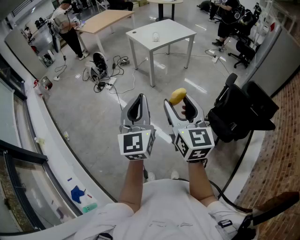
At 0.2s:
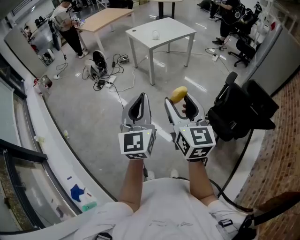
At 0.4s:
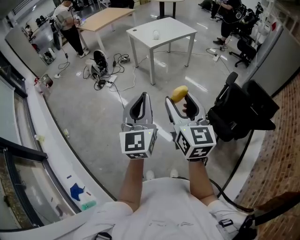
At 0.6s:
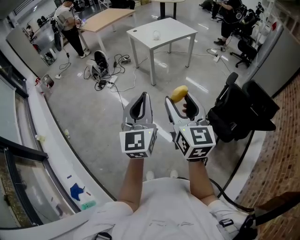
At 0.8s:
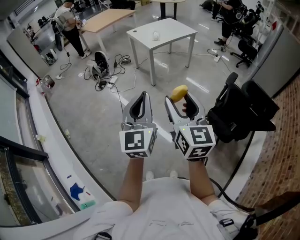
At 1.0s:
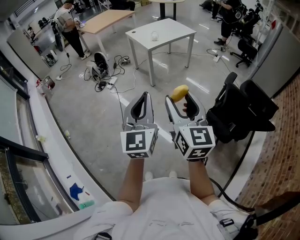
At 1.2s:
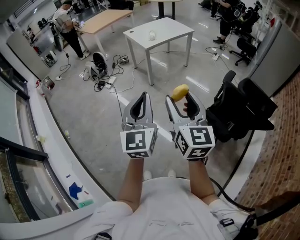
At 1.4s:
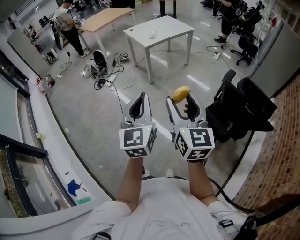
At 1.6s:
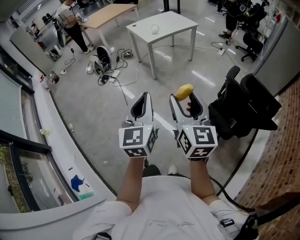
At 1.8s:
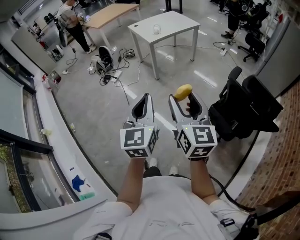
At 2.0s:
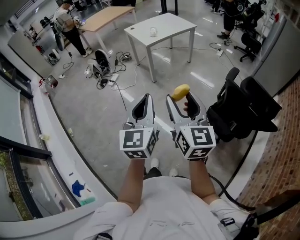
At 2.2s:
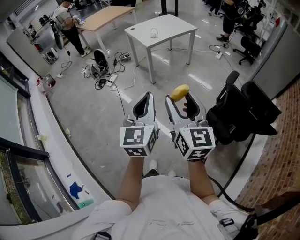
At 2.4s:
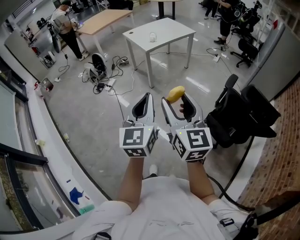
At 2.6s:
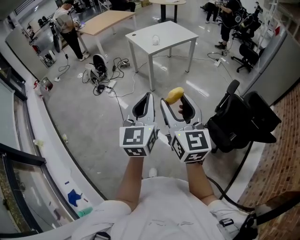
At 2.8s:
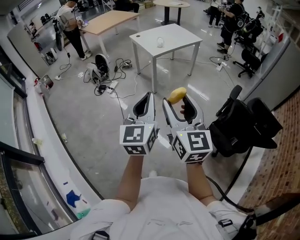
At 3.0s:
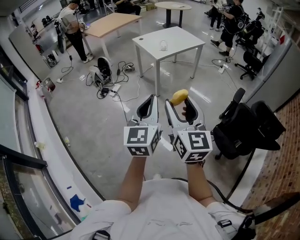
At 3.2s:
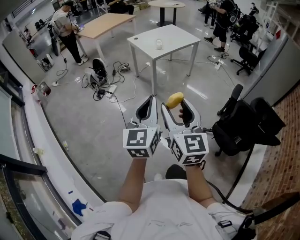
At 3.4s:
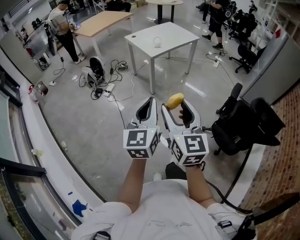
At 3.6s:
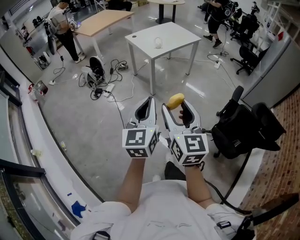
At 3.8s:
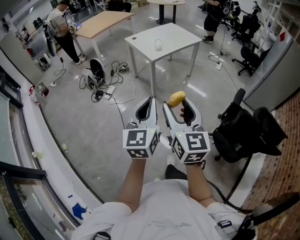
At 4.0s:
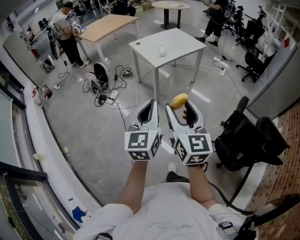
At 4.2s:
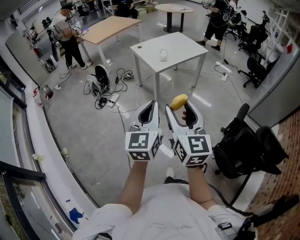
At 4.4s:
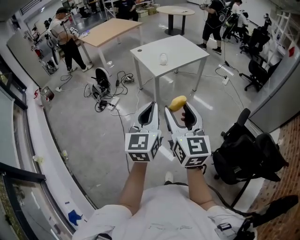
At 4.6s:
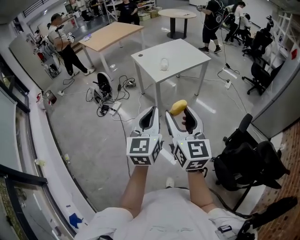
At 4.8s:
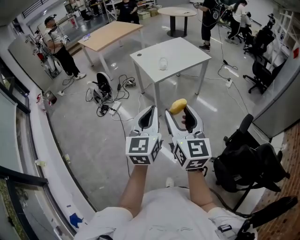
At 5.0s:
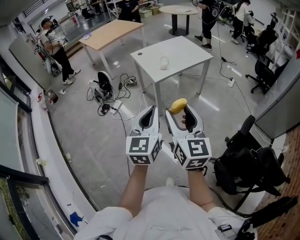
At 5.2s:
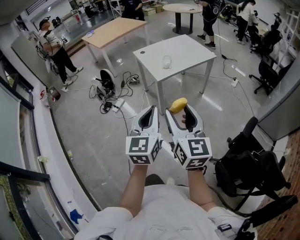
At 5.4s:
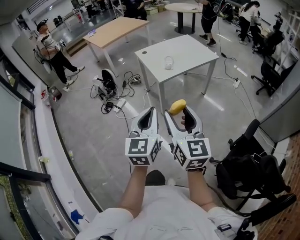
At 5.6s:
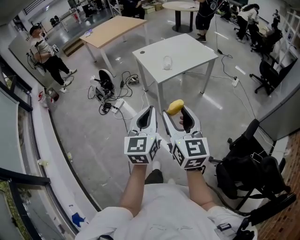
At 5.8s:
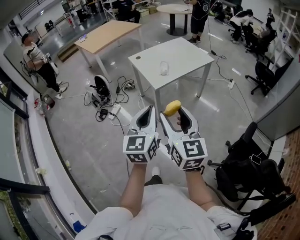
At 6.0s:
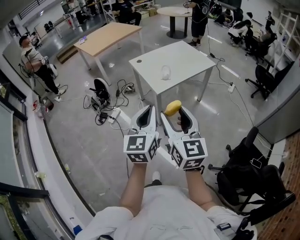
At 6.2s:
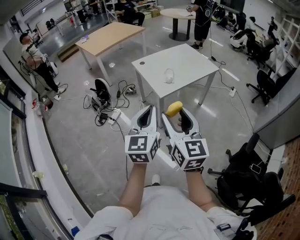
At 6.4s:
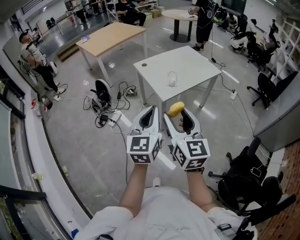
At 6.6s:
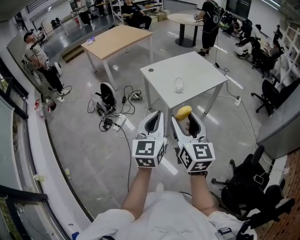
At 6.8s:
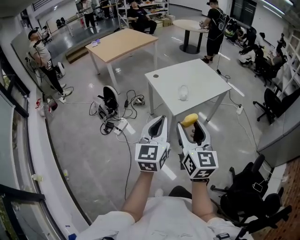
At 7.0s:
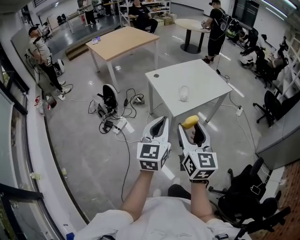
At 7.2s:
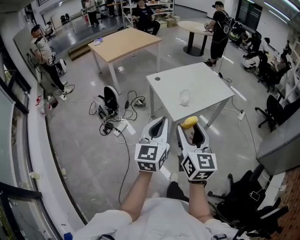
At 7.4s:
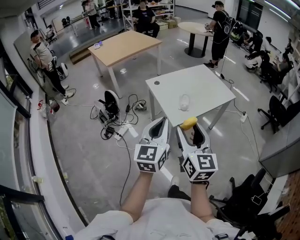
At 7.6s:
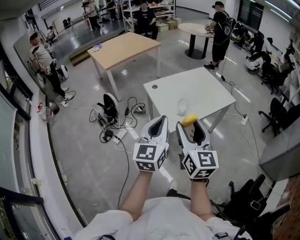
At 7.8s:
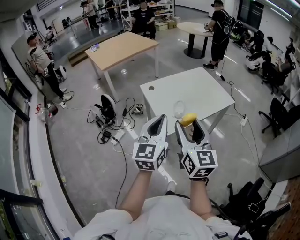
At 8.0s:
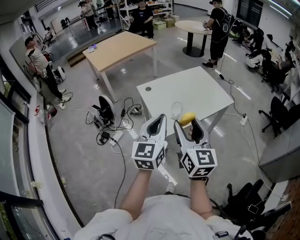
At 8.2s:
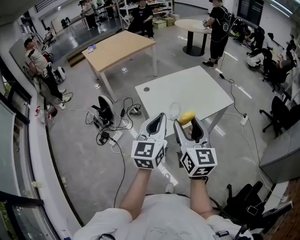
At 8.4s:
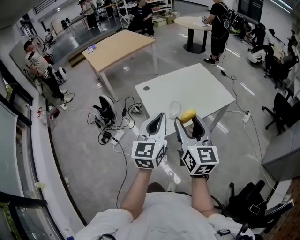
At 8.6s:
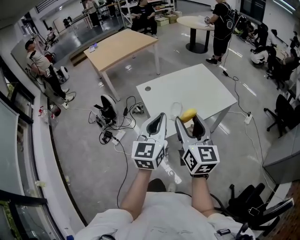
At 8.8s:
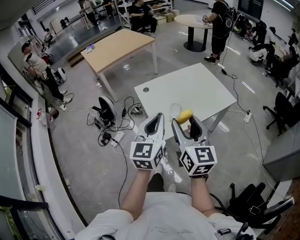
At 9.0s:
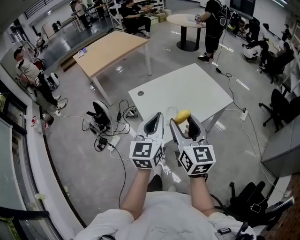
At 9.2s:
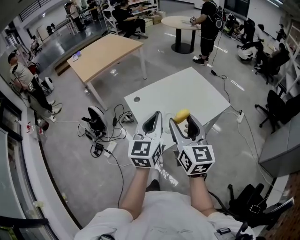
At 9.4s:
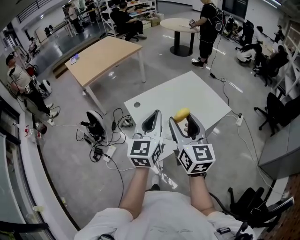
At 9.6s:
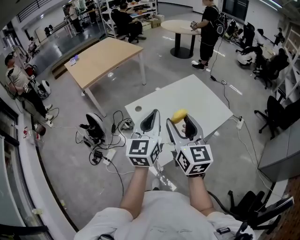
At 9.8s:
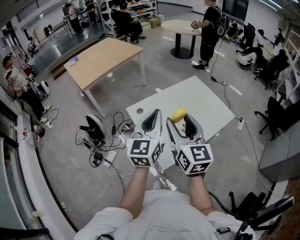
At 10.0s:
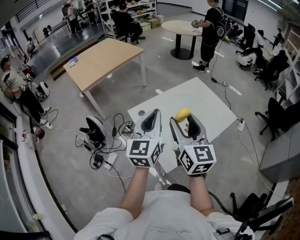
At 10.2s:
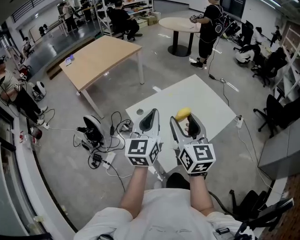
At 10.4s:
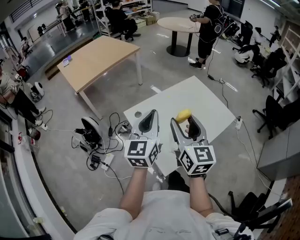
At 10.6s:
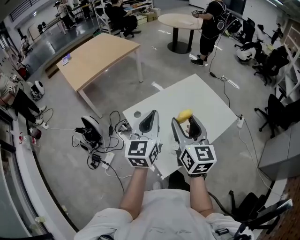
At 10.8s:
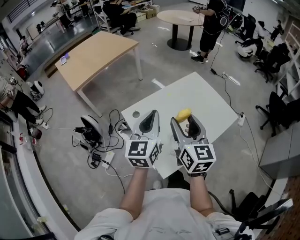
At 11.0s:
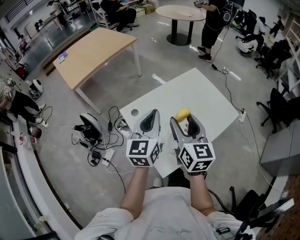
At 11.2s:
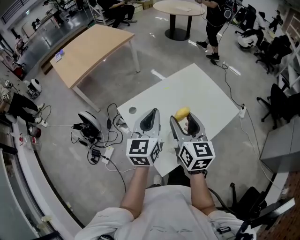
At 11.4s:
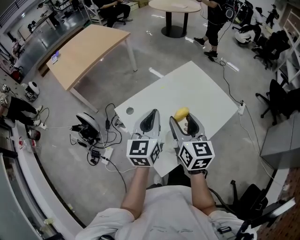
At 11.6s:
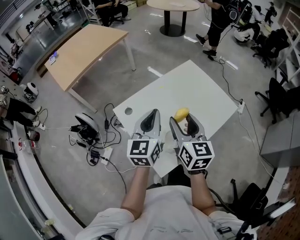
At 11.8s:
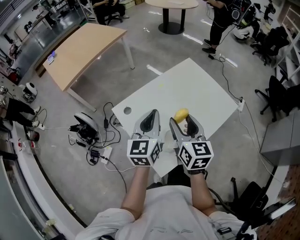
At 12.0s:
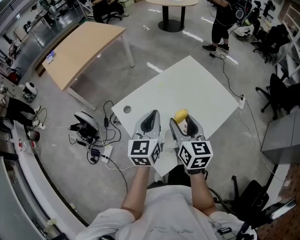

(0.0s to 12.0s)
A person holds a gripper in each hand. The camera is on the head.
0.0s - 1.6s: The grippers both shift to the right by roughly 10 cm.
1.6s - 3.0s: The right gripper is displaced to the left and forward by about 15 cm; the left gripper goes approximately 15 cm forward and to the left.
3.0s - 4.4s: Both grippers move forward, some 20 cm.
4.4s - 6.0s: The two grippers go about 20 cm forward.
6.0s - 7.6s: Both grippers travel together forward, about 25 cm.
7.6s - 9.0s: Both grippers travel together forward and to the right, some 15 cm.
9.0s - 10.4s: The right gripper travels forward by about 20 cm. The left gripper travels forward and to the left by approximately 20 cm.
10.4s - 12.0s: Both grippers travel together downward, forward and to the right, about 15 cm.

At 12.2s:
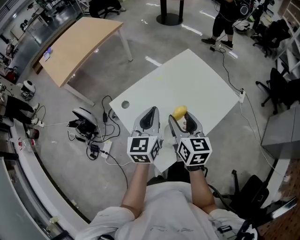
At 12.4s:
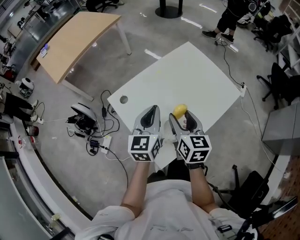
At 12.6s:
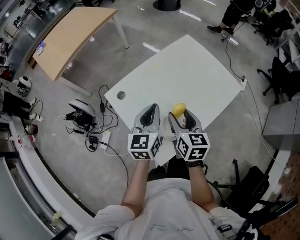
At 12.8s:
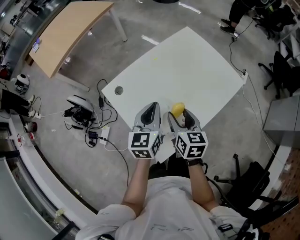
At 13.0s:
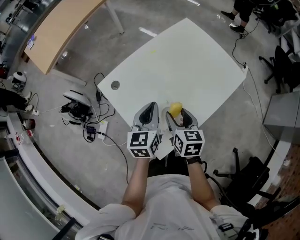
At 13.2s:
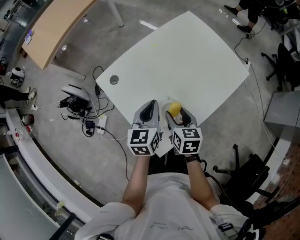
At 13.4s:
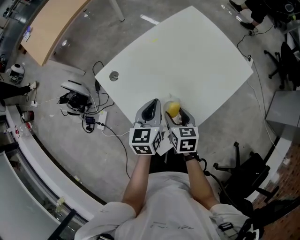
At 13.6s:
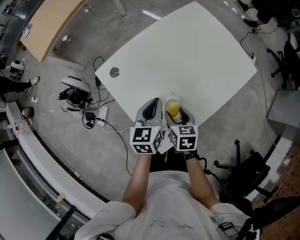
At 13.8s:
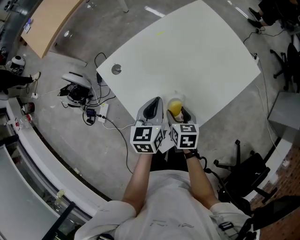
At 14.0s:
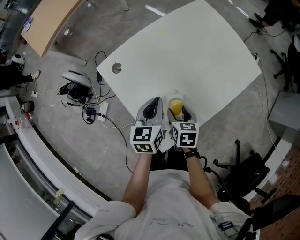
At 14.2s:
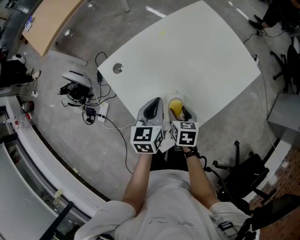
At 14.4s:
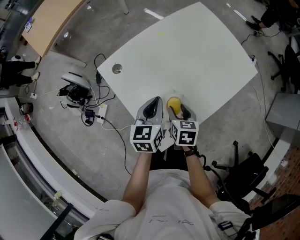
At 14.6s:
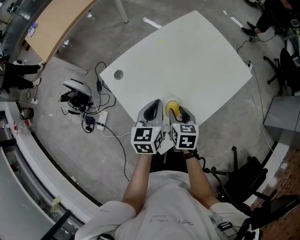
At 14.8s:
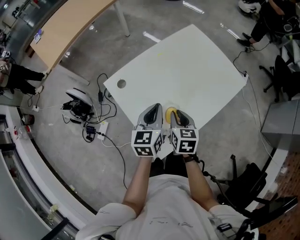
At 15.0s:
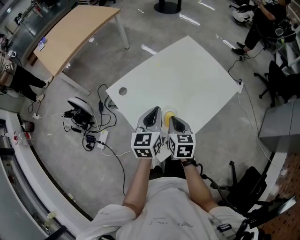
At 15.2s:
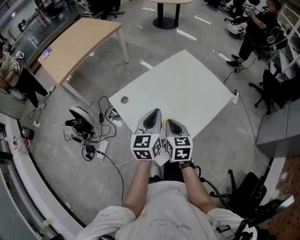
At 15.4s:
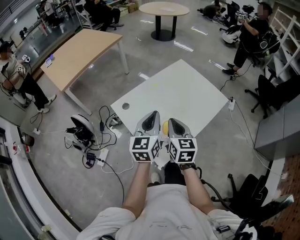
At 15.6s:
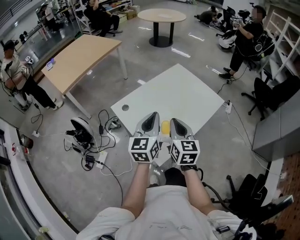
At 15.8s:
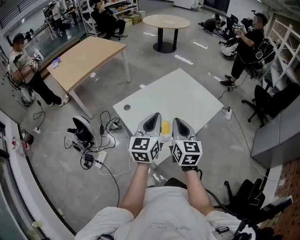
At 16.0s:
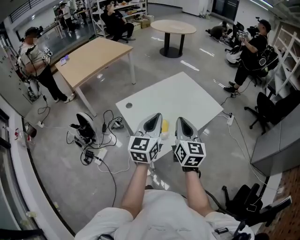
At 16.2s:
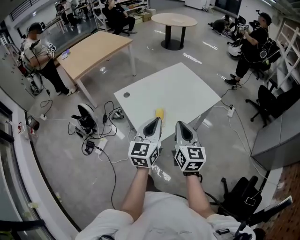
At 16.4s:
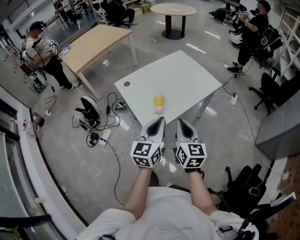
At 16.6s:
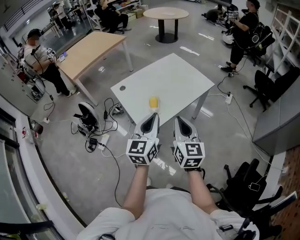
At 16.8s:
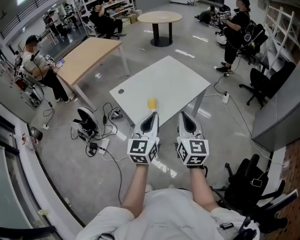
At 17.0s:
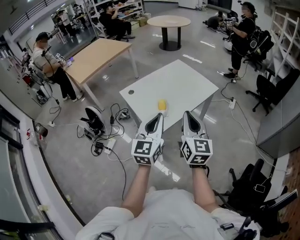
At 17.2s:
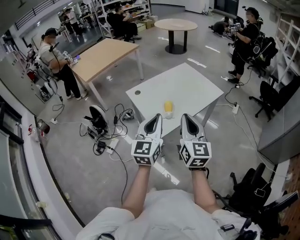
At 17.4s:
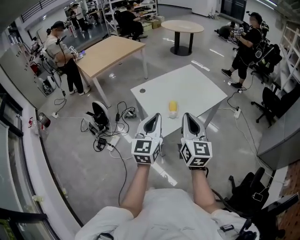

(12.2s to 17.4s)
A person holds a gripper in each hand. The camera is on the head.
12.2s - 14.0s: The grippers both shift downward by some 20 cm. The right gripper points its fingers roughly 30 degrees further downward. Meanwhile the left gripper swivels some 20 degrees.
14.0s - 15.6s: Both grippers move upward, about 25 cm. The right gripper points its fingers some 40 degrees further upward, and closes its fingers; the left gripper swivels some 30 degrees.
15.6s - 17.4s: The left gripper is displaced backward by about 25 cm. The right gripper is displaced backward and upward by some 25 cm.

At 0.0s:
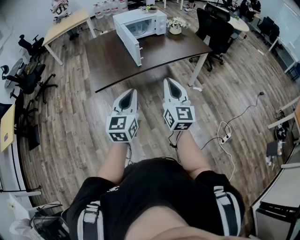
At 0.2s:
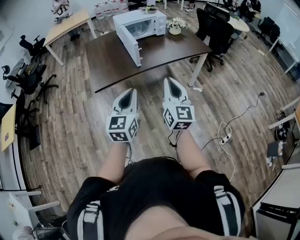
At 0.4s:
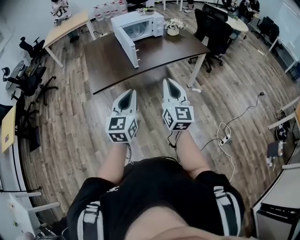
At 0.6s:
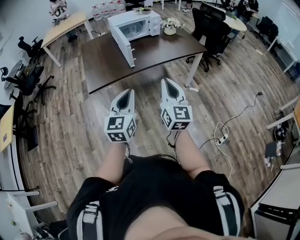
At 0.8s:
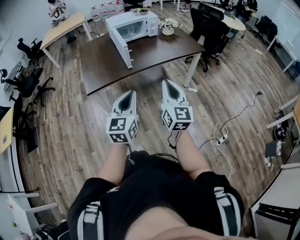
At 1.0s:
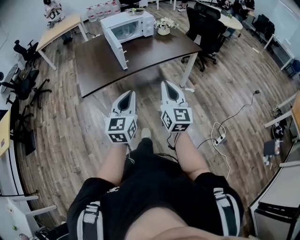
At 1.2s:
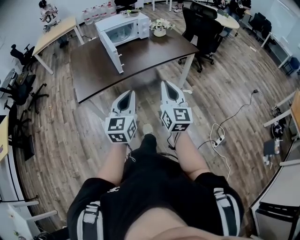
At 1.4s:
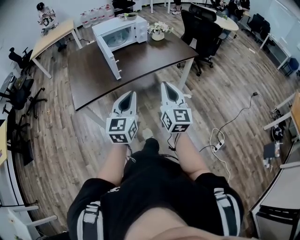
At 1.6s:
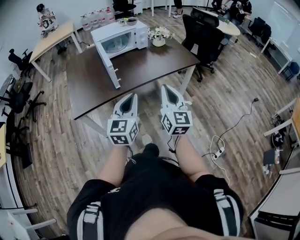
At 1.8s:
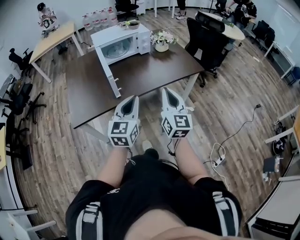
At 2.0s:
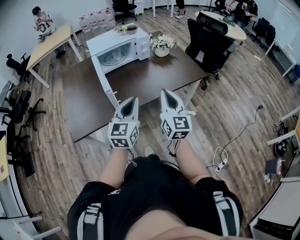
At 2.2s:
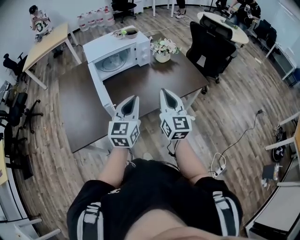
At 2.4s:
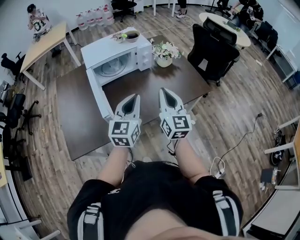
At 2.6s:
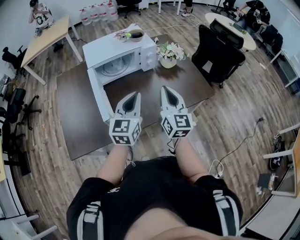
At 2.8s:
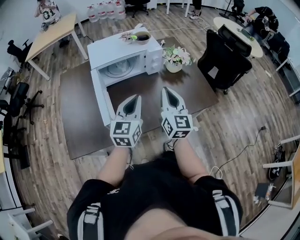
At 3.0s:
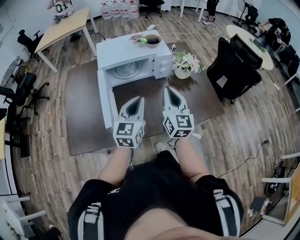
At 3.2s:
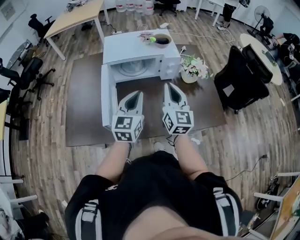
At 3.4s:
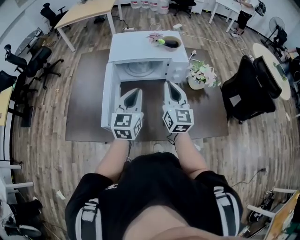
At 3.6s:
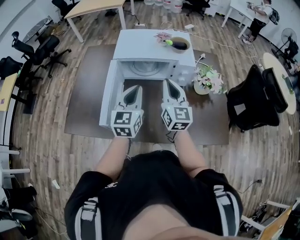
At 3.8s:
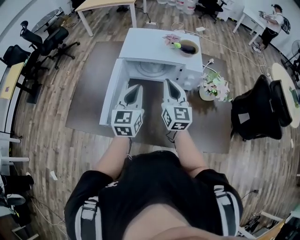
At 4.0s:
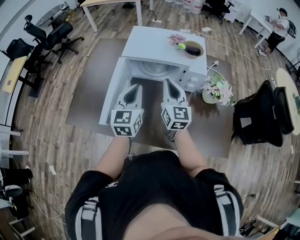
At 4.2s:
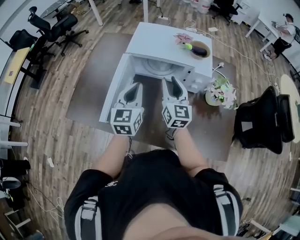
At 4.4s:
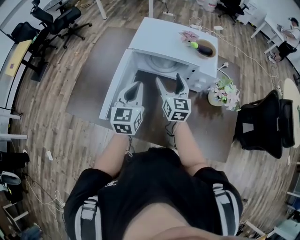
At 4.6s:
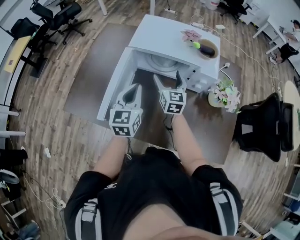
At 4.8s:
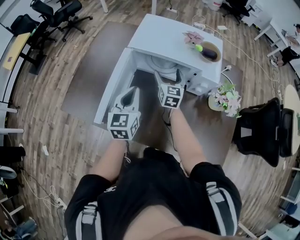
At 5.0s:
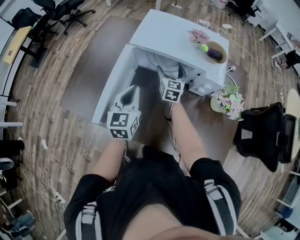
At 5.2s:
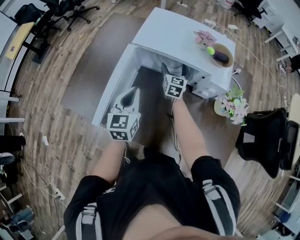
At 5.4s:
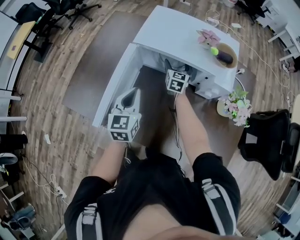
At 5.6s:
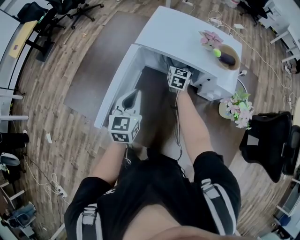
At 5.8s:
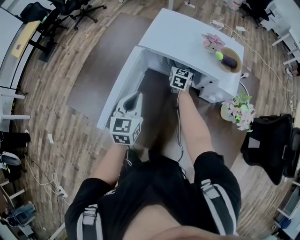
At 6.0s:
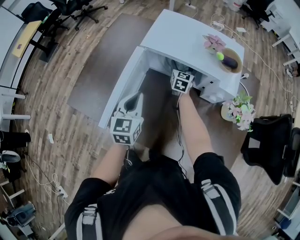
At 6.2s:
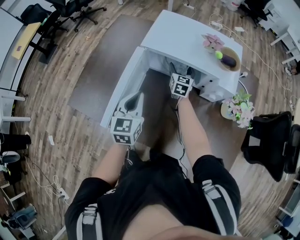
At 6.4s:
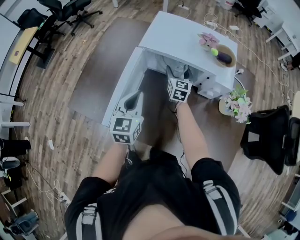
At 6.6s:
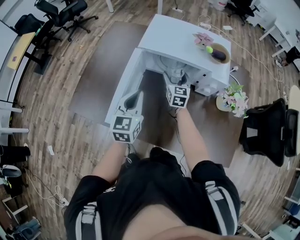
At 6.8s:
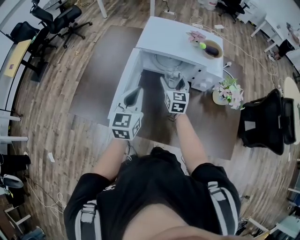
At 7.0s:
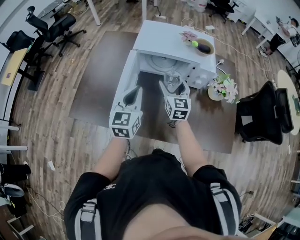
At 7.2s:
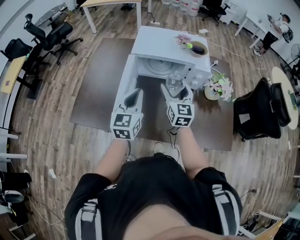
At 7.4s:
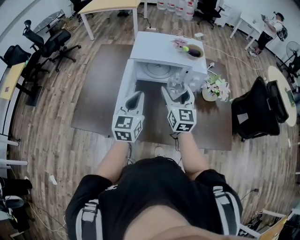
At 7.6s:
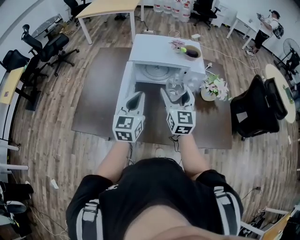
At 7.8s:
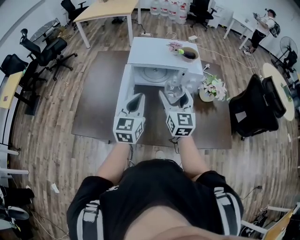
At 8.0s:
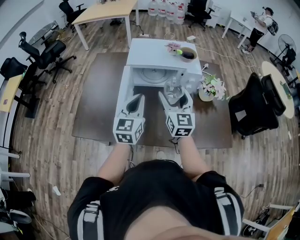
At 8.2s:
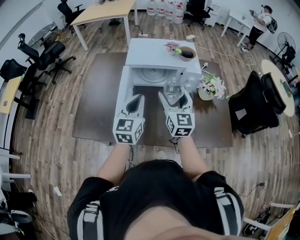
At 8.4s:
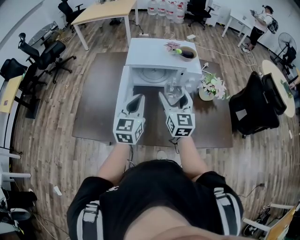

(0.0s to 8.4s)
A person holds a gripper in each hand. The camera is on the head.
0.0s - 1.4s: Both grippers travel together to the right and forward, some 15 cm.
1.4s - 2.8s: Both grippers are carried forward, roughly 50 cm.
2.8s - 4.2s: The left gripper ends up some 20 cm from where it was, and turns by roughly 40 degrees; the right gripper ends up approximately 25 cm from where it was, and swivels roughly 30 degrees.
4.2s - 5.6s: The left gripper heads downward, covering approximately 10 cm. Meanwhile the right gripper goes about 30 cm forward and downward, turns by approximately 20 degrees, and opens its fingers.
5.6s - 7.0s: The right gripper heads backward and upward, covering some 30 cm. The left gripper moves upward and backward, roughly 15 cm.
7.0s - 8.4s: The right gripper travels upward and backward by some 15 cm.
